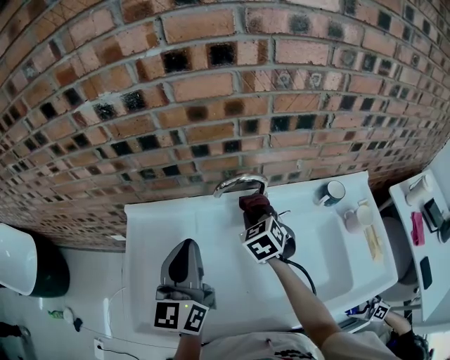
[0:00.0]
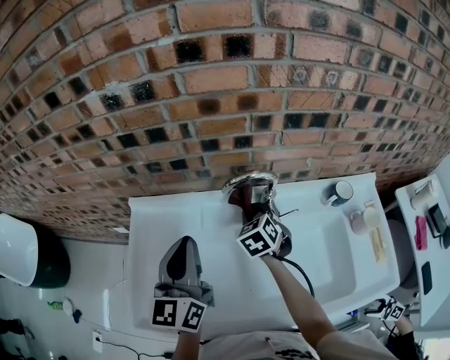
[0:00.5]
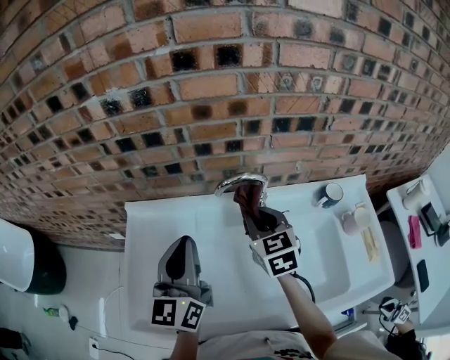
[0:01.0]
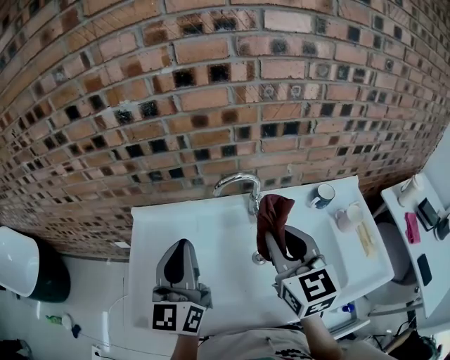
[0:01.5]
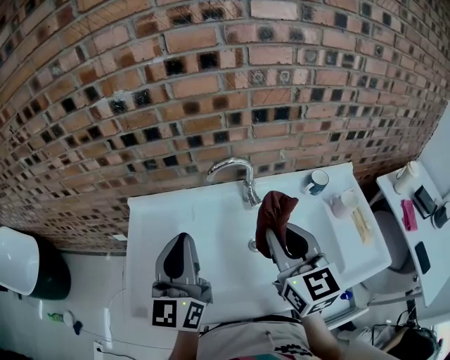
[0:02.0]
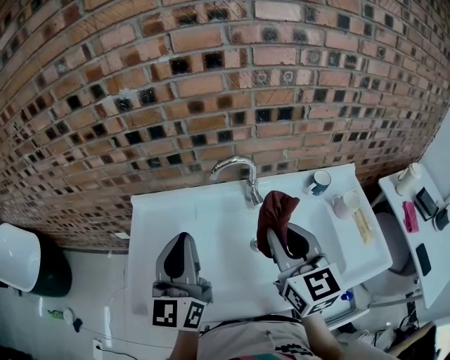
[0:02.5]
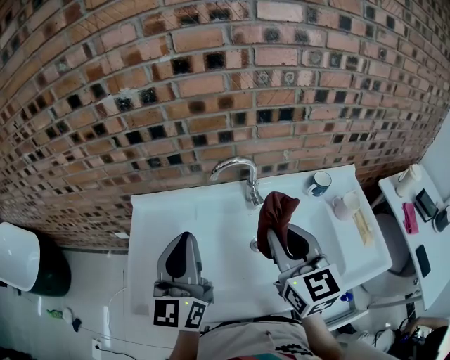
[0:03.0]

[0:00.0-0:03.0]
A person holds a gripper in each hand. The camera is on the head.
0:00.0 to 0:01.5: The right gripper shifts roughly 25 cm upward and backward, and angles its fingers upward, by some 30 degrees; the left gripper is displaced backward by roughly 5 cm.
0:01.5 to 0:03.0: There are only small adjustments of the grippers.

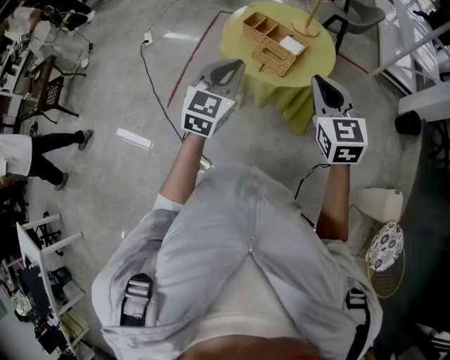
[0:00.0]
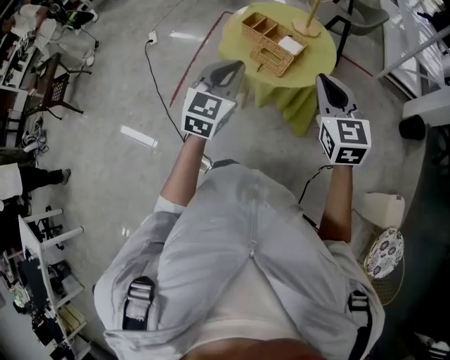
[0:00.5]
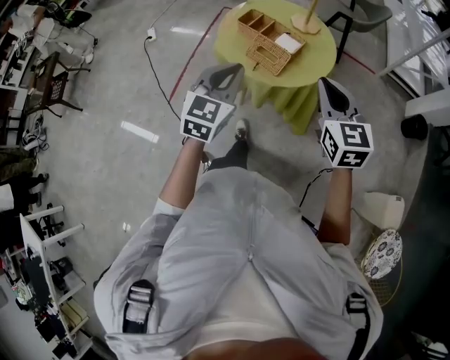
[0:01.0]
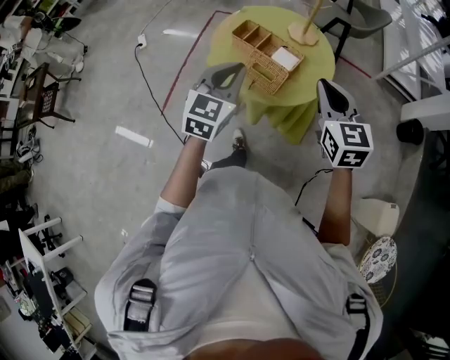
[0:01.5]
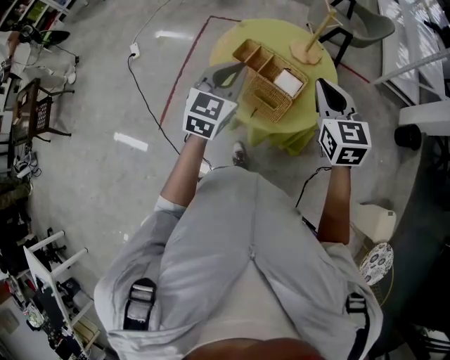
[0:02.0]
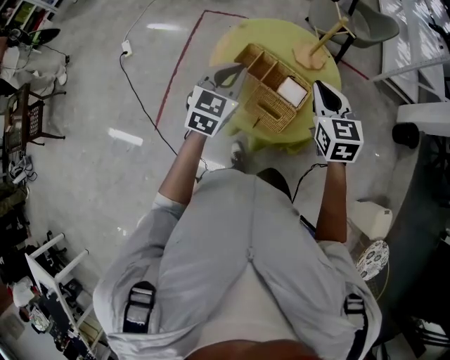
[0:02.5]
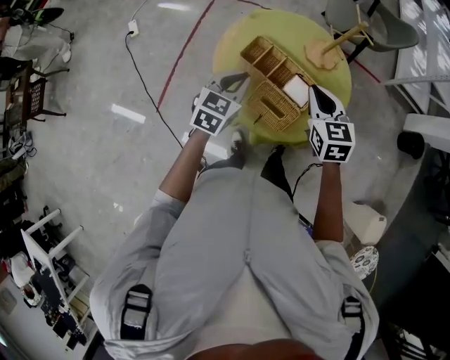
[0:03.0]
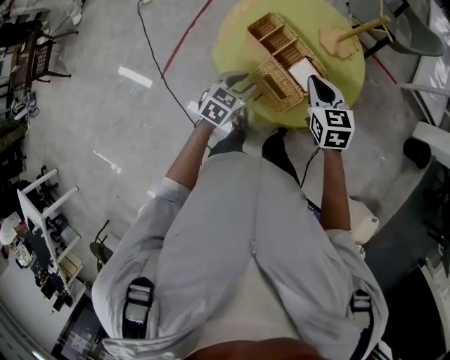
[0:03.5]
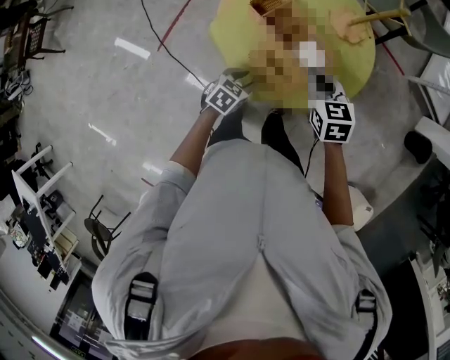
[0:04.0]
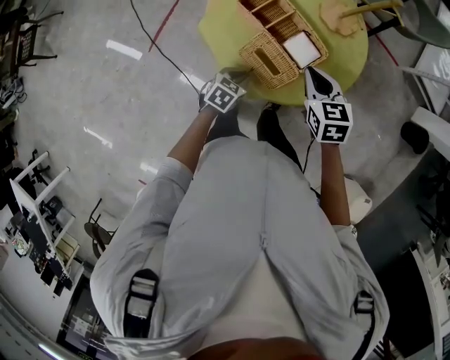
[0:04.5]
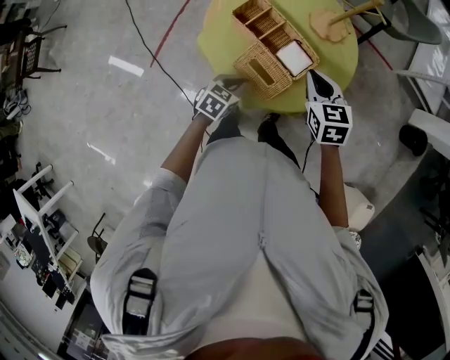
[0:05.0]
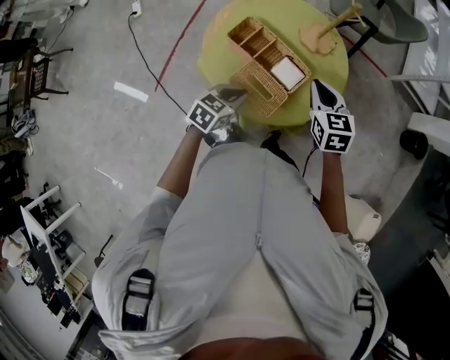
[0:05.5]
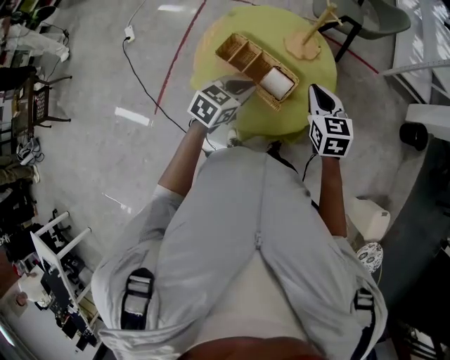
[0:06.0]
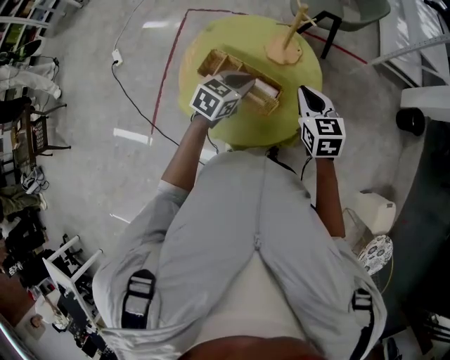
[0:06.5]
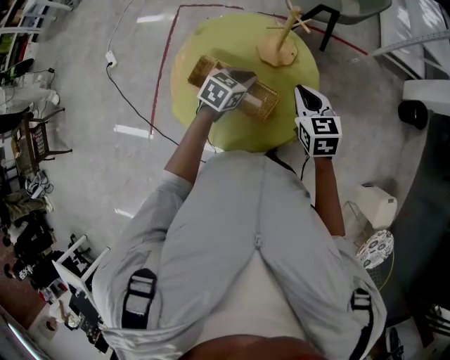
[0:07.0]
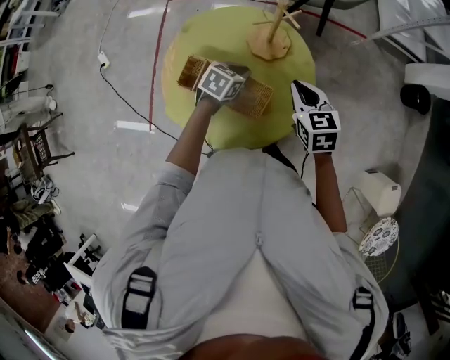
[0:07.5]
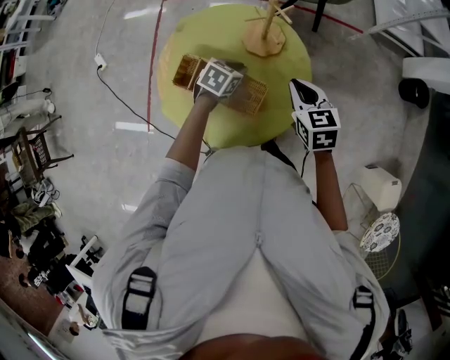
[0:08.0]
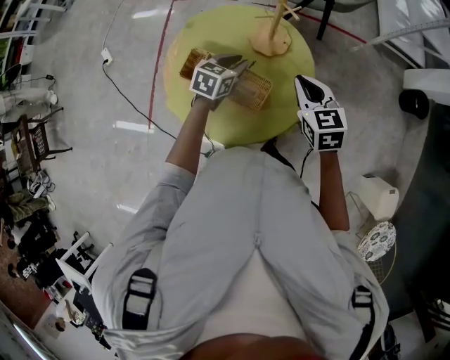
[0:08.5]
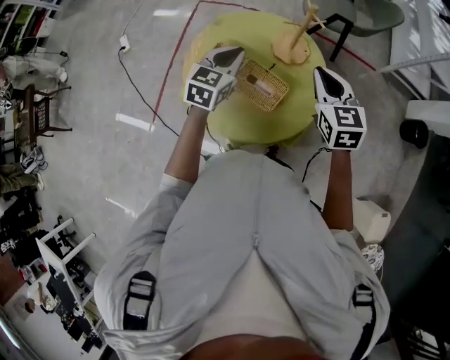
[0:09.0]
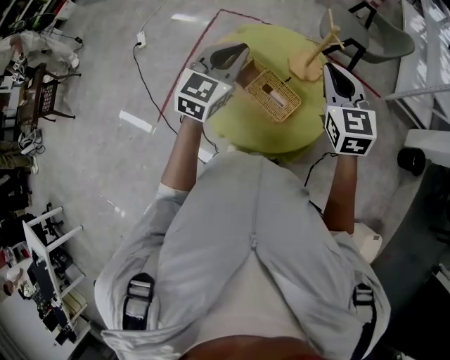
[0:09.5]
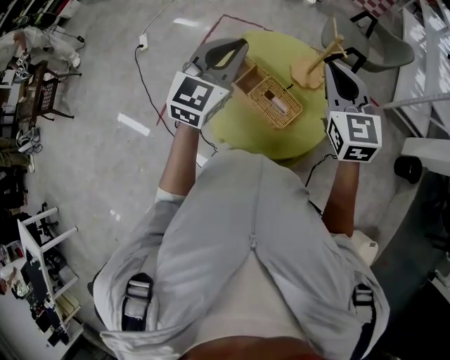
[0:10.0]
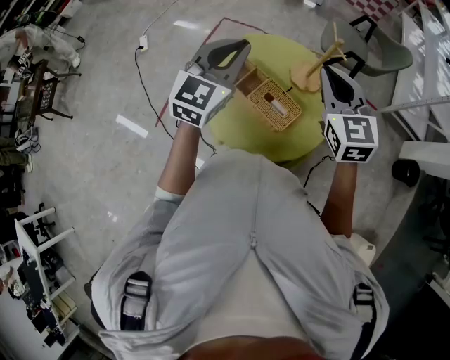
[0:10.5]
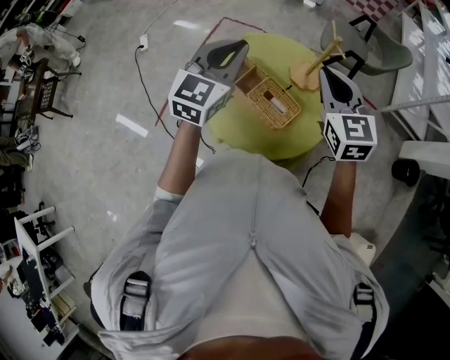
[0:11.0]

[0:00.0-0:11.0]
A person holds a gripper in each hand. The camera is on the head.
0:00.0 to 0:02.0: The grippers both shift forward by roughly 25 cm.
0:02.0 to 0:03.5: The right gripper moves downward and forward, about 20 cm, and turns by some 20 degrees, while the left gripper travels downward by roughly 25 cm, turns by approximately 30 degrees, and opens up.
0:03.5 to 0:05.5: The left gripper reaches roughly 10 cm downward, then returns, and closes. Meanwhile the right gripper goes approximately 5 cm to the right.
0:05.5 to 0:07.5: The right gripper travels forward and to the right by about 10 cm; the left gripper moves forward, roughly 25 cm.
0:07.5 to 0:09.0: The right gripper is displaced upward by approximately 10 cm. Meanwhile the left gripper is displaced upward and to the left by about 15 cm, and swivels some 40 degrees.
0:09.0 to 0:11.0: Both grippers move upward and to the left, approximately 15 cm. The left gripper changes its angle by some 20 degrees.

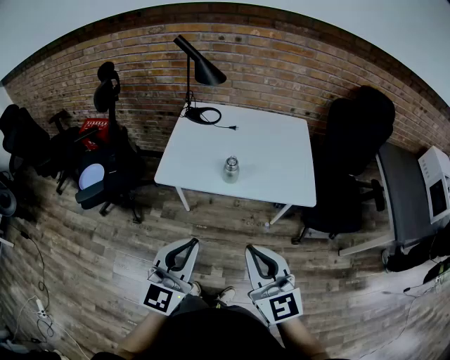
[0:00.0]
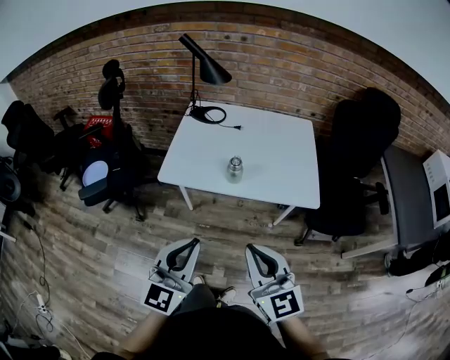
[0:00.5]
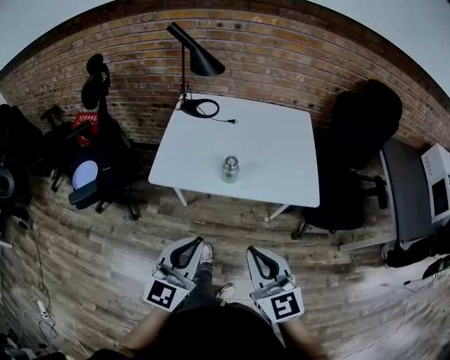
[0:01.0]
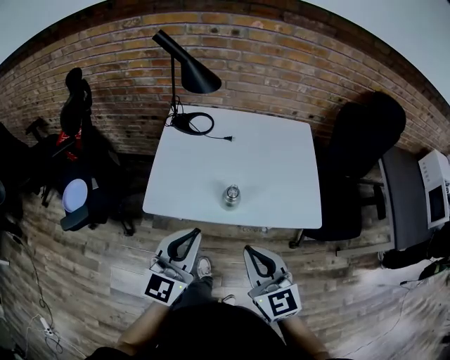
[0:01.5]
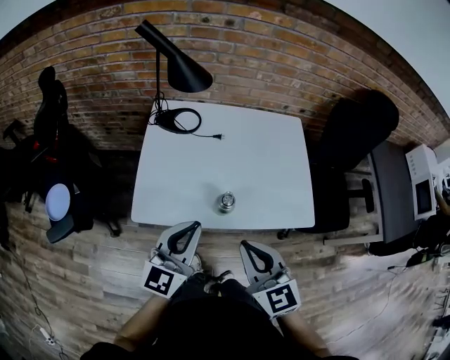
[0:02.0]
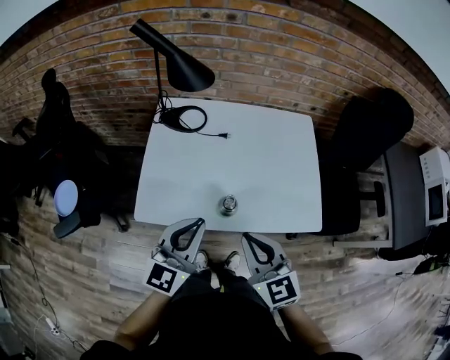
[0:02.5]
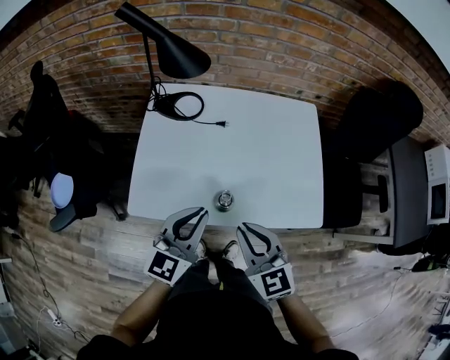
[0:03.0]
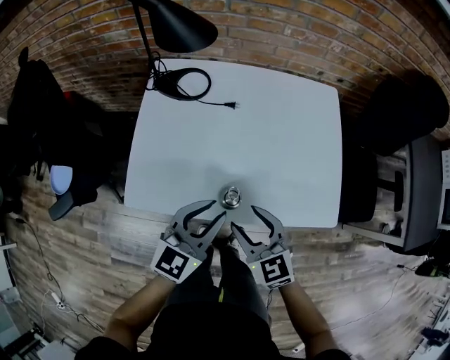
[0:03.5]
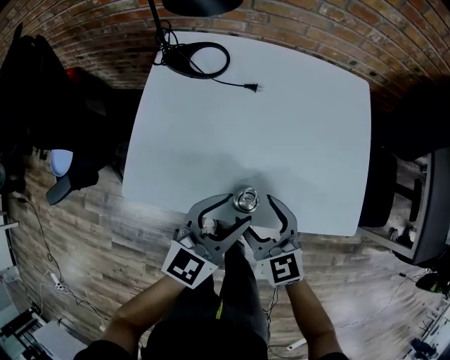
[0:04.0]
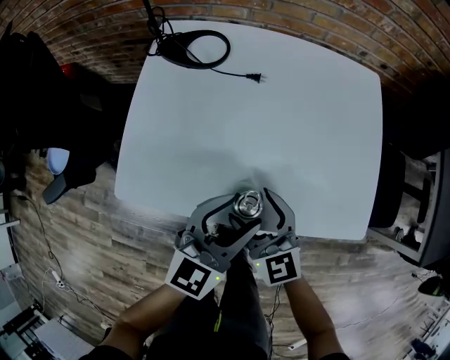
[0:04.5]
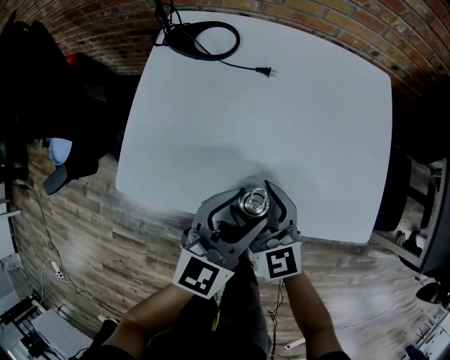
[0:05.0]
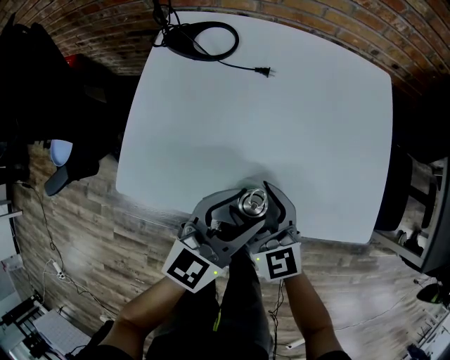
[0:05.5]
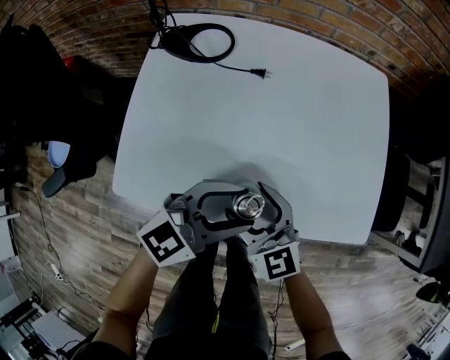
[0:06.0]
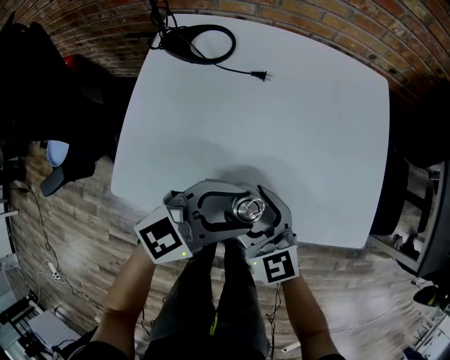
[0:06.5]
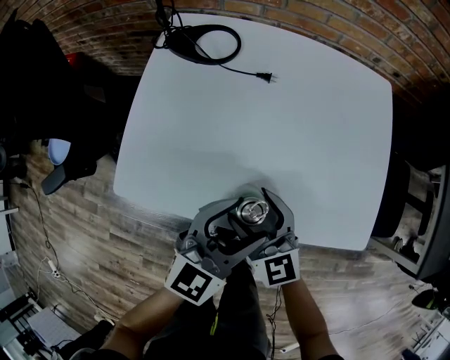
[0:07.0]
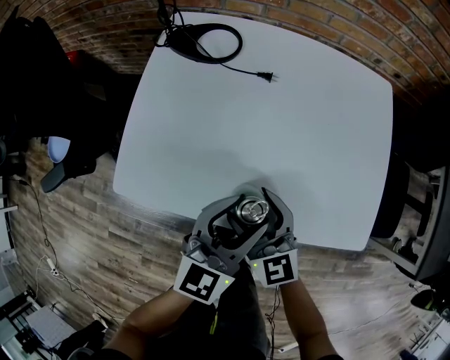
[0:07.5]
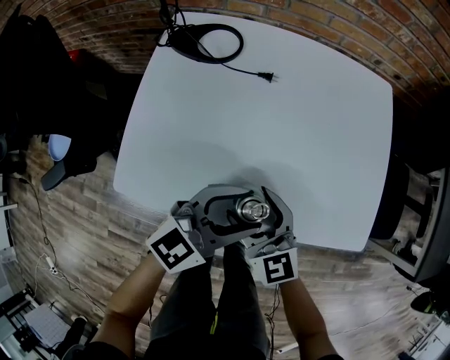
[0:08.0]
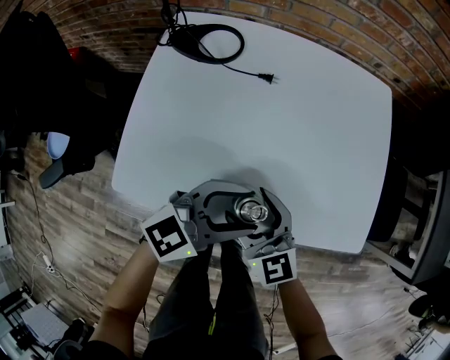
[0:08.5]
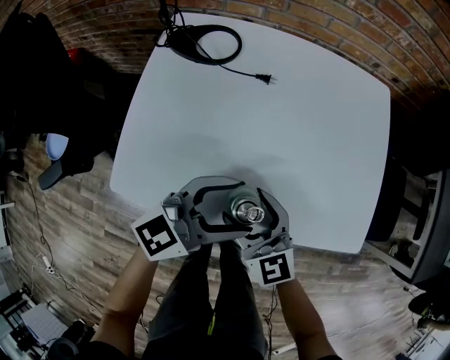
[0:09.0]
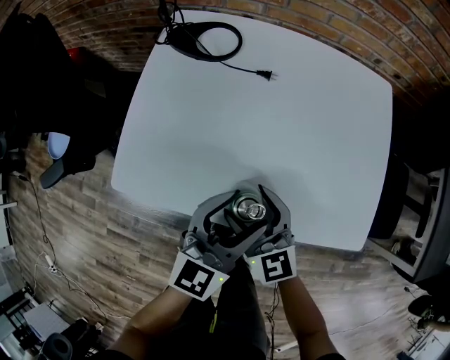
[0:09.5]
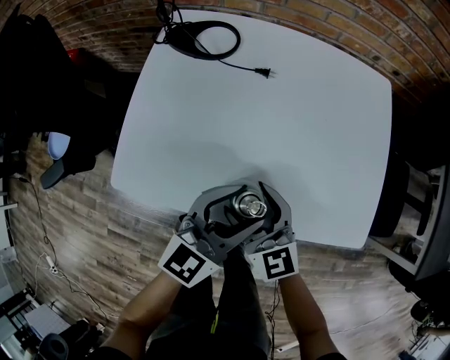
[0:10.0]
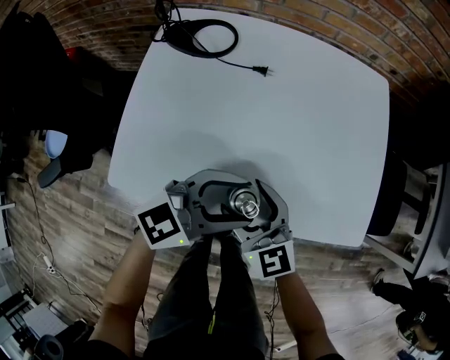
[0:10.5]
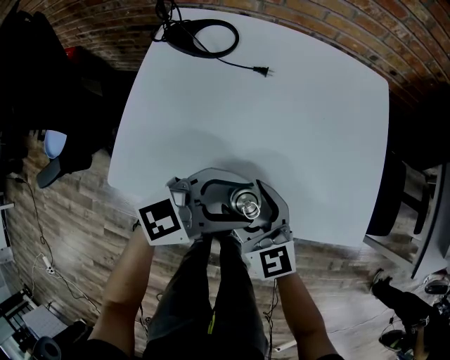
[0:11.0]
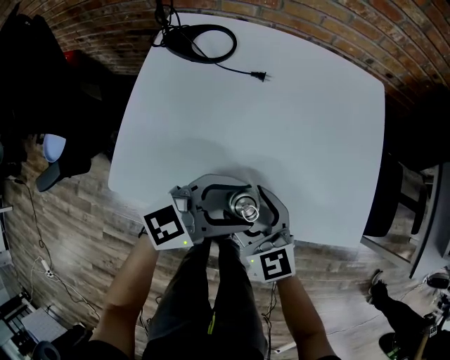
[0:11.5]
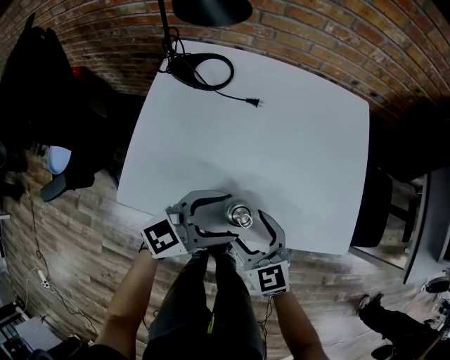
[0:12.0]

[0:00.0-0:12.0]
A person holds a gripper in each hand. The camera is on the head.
0:00.0 to 0:02.0: Both grippers move forward, some 25 cm.
0:02.0 to 0:04.0: The left gripper travels downward, to the right and forward by roughly 20 cm, and opens its fingers. The right gripper shifts roughly 25 cm downward and forward, and opens up.
0:04.0 to 0:06.0: The left gripper rotates roughly 30 degrees.
0:10.0 to 0:12.0: The left gripper rotates some 20 degrees.

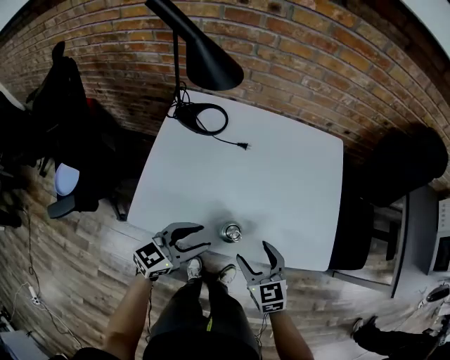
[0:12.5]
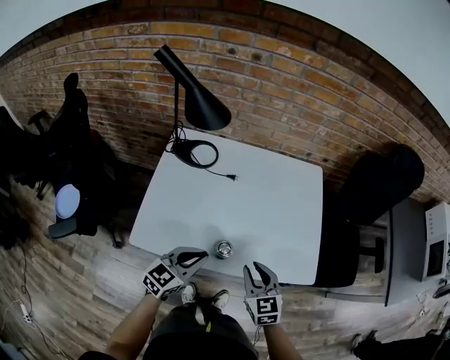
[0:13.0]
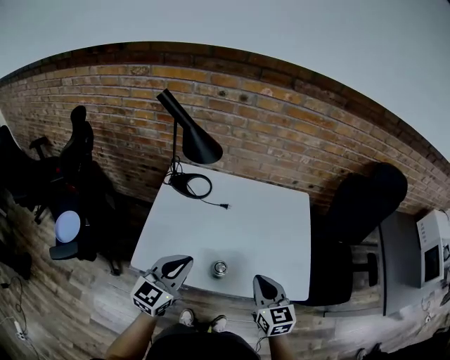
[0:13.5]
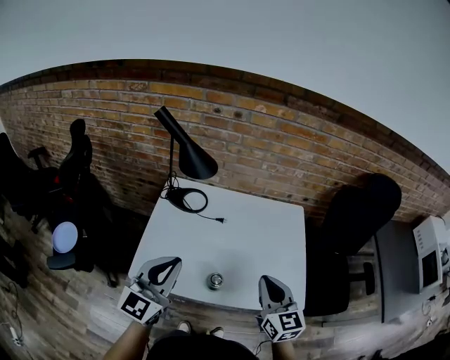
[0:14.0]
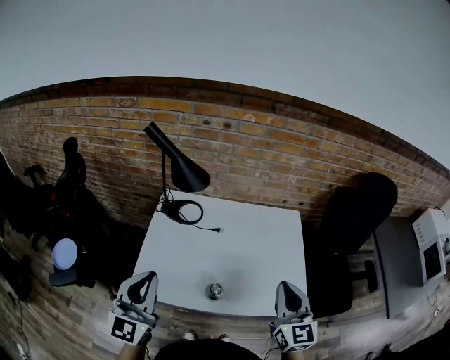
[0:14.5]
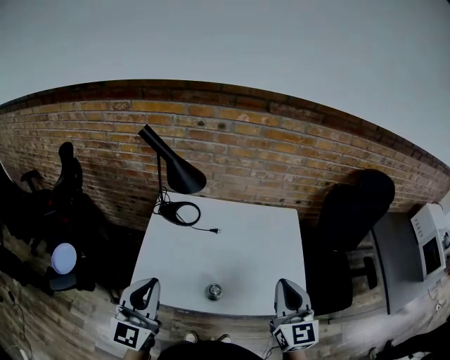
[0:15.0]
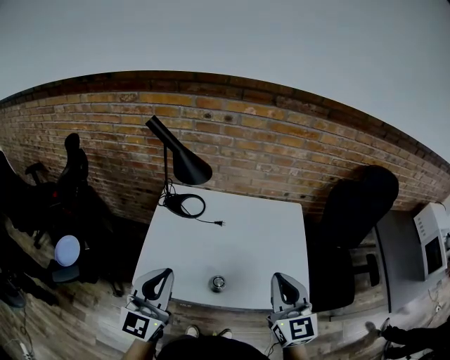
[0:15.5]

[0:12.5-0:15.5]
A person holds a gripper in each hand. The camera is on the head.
0:12.5 to 0:14.0: Both grippers travel together upward, about 25 cm. The right gripper changes its angle by about 20 degrees, and closes its fingers. Meanwhile the left gripper swivels some 40 degrees, and closes.
0:14.0 to 0:15.5: The right gripper goes roughly 10 cm upward.
